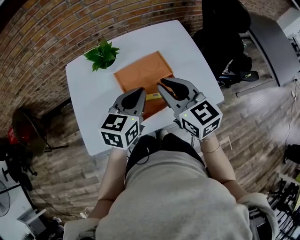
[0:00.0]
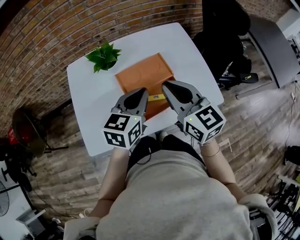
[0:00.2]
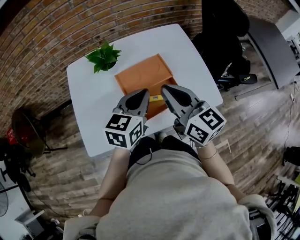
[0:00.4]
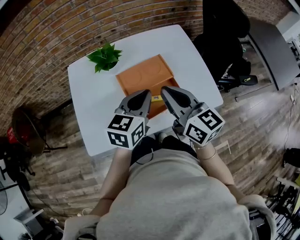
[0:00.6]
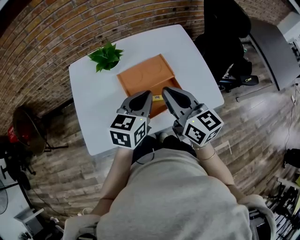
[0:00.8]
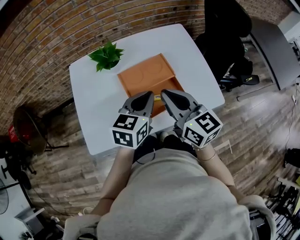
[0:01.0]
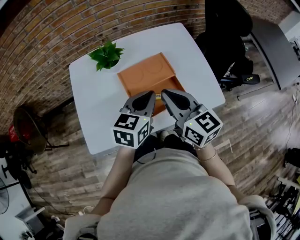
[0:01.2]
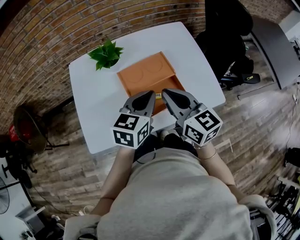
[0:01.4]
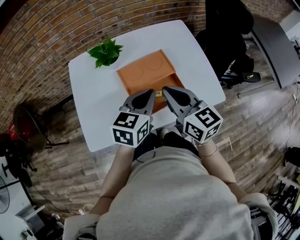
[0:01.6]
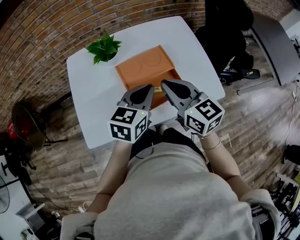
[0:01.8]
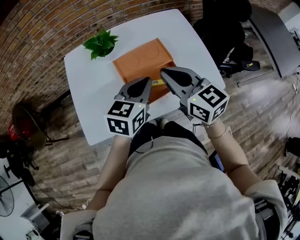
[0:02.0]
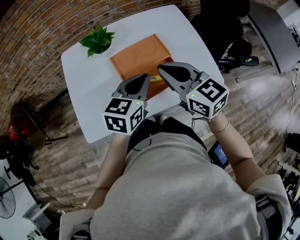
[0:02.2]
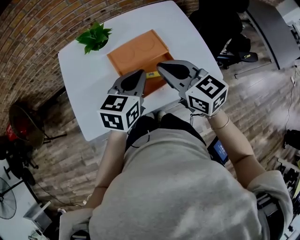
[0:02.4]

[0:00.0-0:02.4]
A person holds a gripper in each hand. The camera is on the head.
0:01.2 to 0:02.4: There are only small adjustments of the grippers.

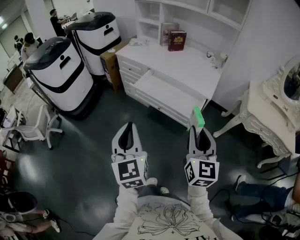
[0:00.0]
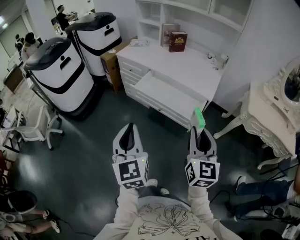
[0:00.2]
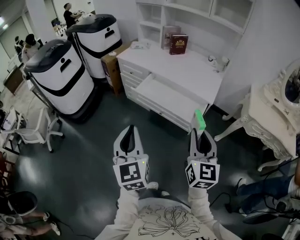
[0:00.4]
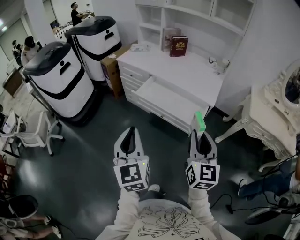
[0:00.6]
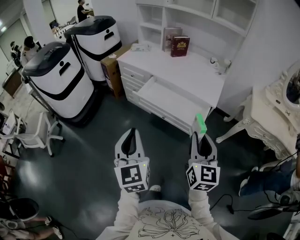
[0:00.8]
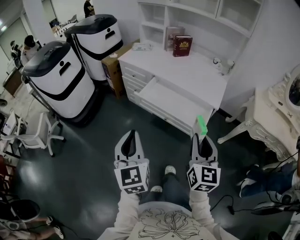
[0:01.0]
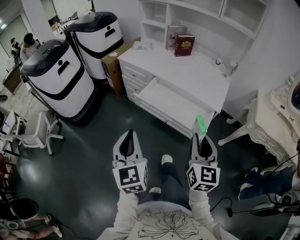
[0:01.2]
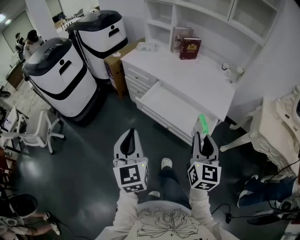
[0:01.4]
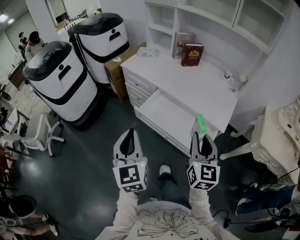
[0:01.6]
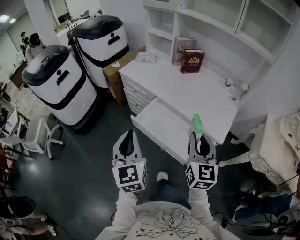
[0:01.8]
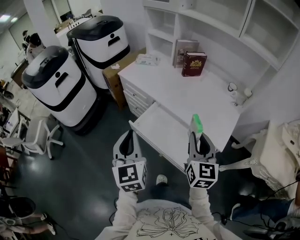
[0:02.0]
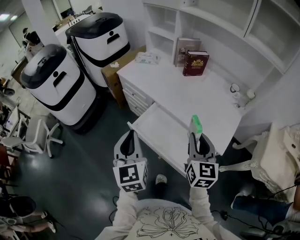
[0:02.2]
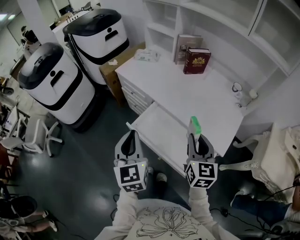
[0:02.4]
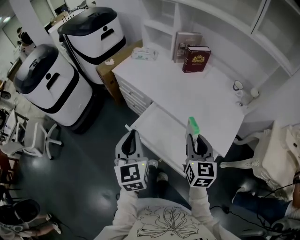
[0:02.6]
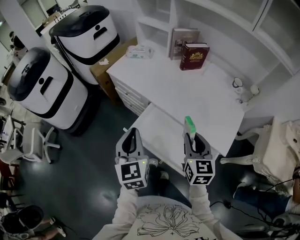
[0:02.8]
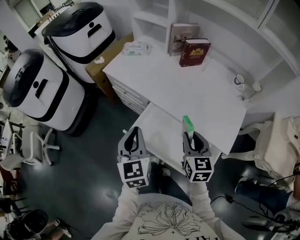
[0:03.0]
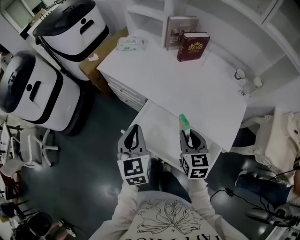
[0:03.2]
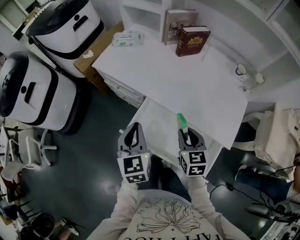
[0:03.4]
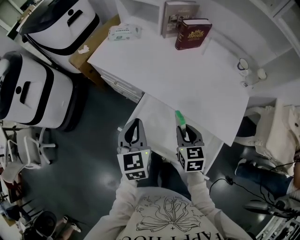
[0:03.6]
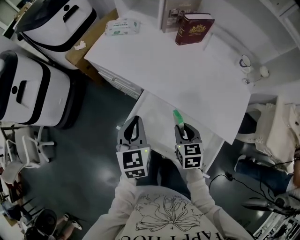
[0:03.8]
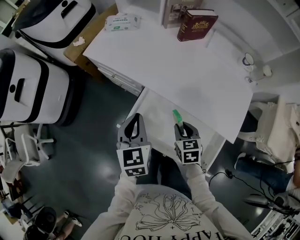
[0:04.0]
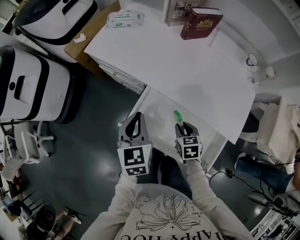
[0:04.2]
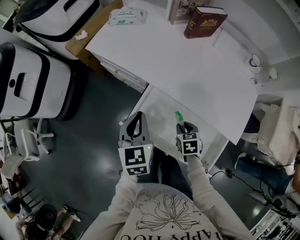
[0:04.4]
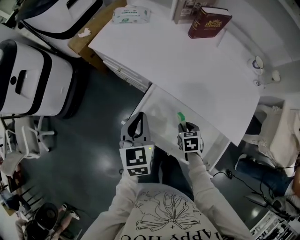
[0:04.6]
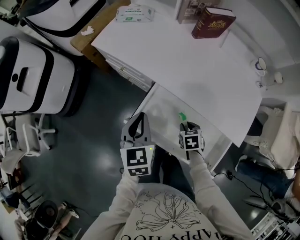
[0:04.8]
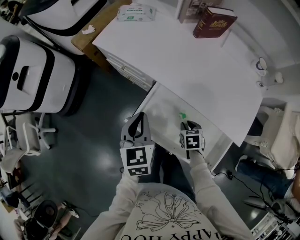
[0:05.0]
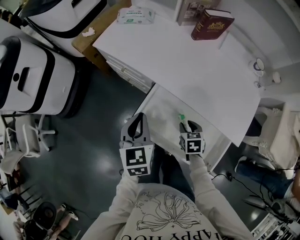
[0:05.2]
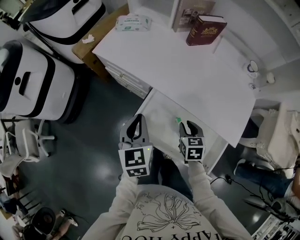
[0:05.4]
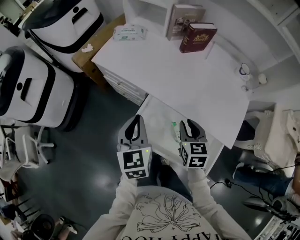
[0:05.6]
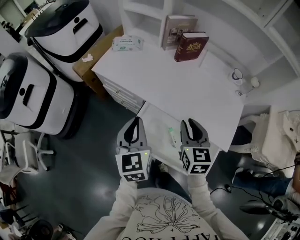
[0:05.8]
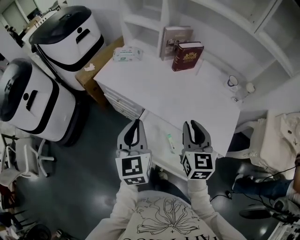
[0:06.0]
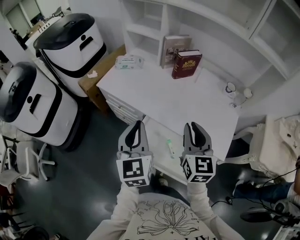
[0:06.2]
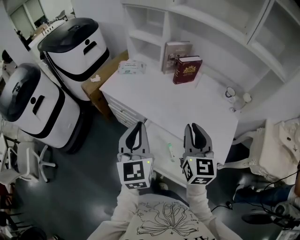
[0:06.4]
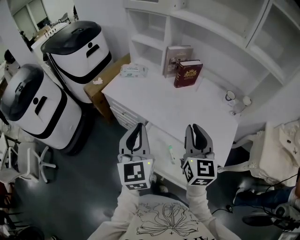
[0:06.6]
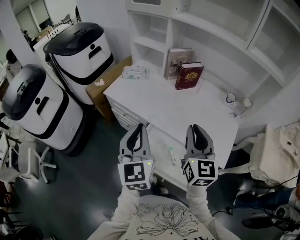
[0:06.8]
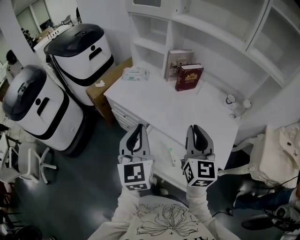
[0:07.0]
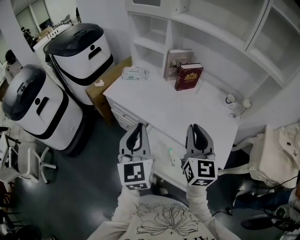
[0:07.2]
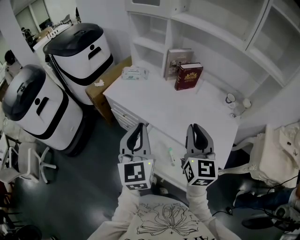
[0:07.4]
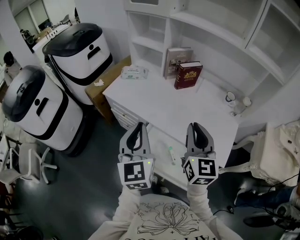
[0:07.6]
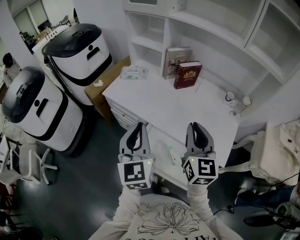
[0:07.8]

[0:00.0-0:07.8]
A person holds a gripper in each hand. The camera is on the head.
0:00.0 to 0:01.6: The grippers both shift forward by about 25 cm.
0:01.6 to 0:03.2: The right gripper shifts about 30 cm forward and downward, and turns by some 30 degrees; the left gripper travels forward by about 30 cm.
0:03.2 to 0:04.6: The right gripper shifts some 25 cm downward, and points its fingers roughly 30 degrees further downward. Meanwhile the left gripper is displaced downward and forward by approximately 10 cm.
0:04.6 to 0:06.2: The left gripper heads upward, covering about 20 cm, and swivels about 20 degrees. The right gripper goes about 35 cm upward, and points its fingers about 50 degrees further upward.
0:06.2 to 0:07.8: The right gripper heads upward, covering some 5 cm.

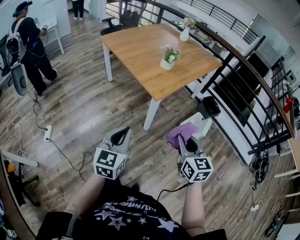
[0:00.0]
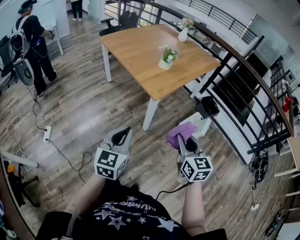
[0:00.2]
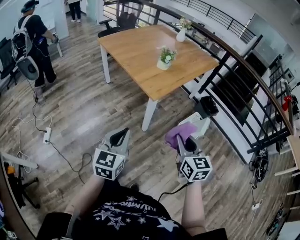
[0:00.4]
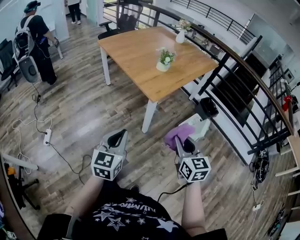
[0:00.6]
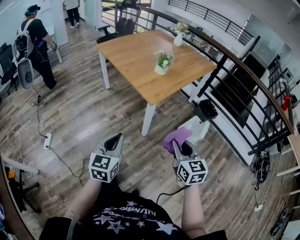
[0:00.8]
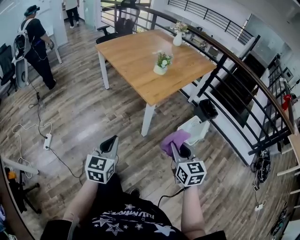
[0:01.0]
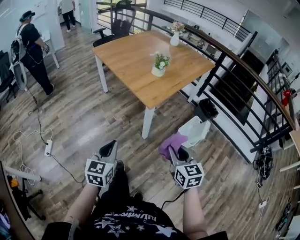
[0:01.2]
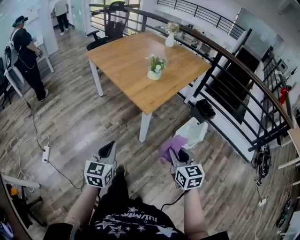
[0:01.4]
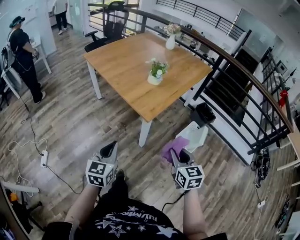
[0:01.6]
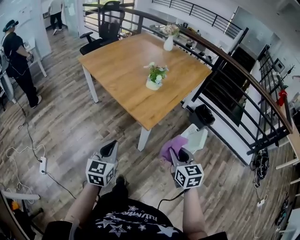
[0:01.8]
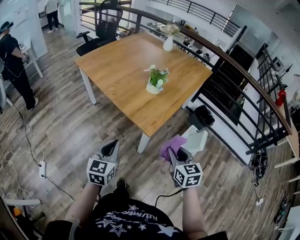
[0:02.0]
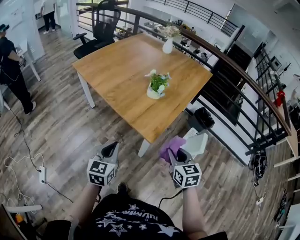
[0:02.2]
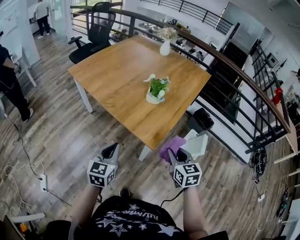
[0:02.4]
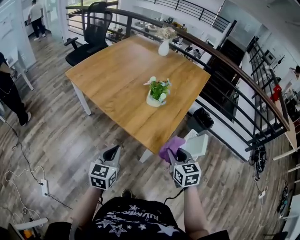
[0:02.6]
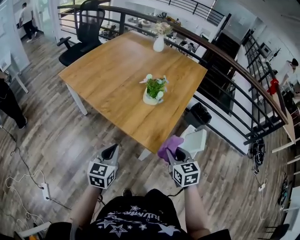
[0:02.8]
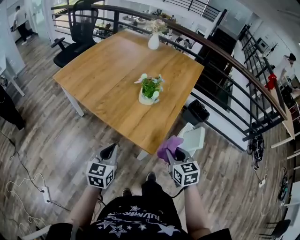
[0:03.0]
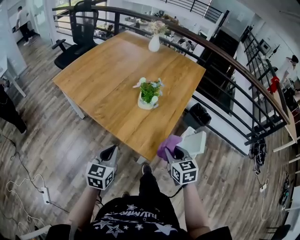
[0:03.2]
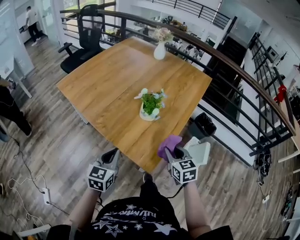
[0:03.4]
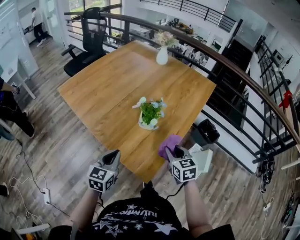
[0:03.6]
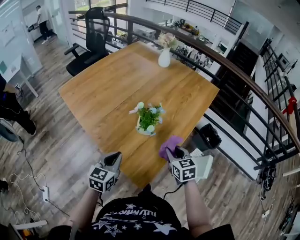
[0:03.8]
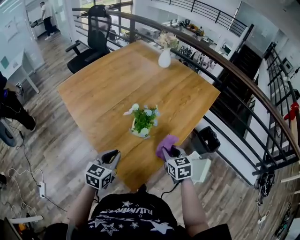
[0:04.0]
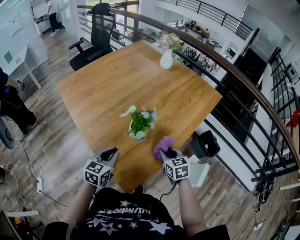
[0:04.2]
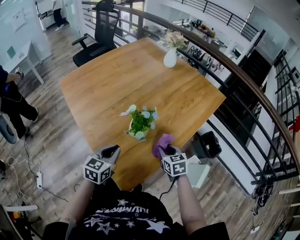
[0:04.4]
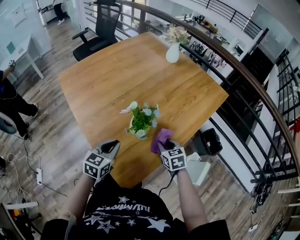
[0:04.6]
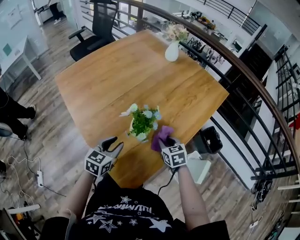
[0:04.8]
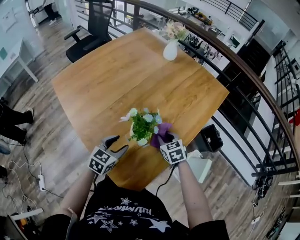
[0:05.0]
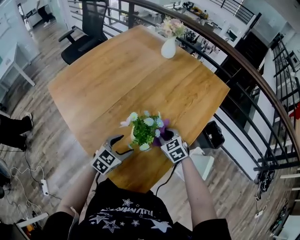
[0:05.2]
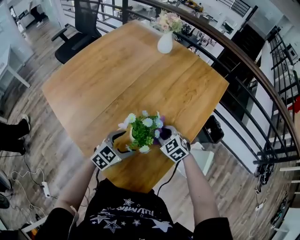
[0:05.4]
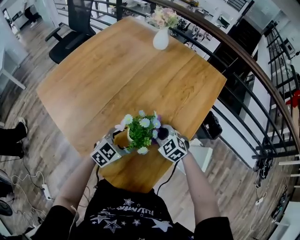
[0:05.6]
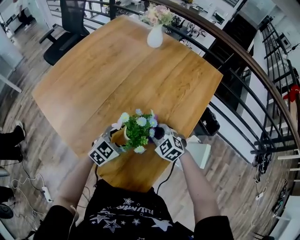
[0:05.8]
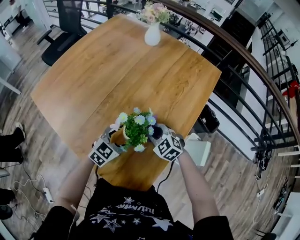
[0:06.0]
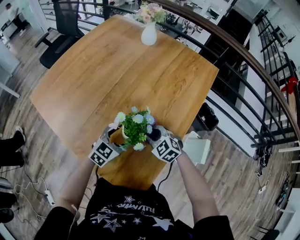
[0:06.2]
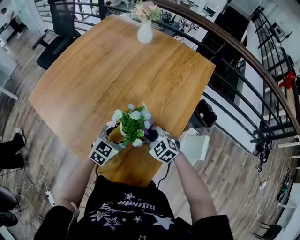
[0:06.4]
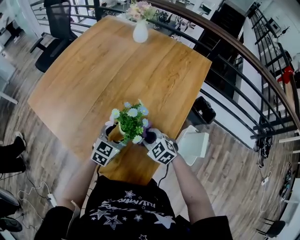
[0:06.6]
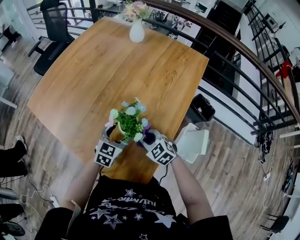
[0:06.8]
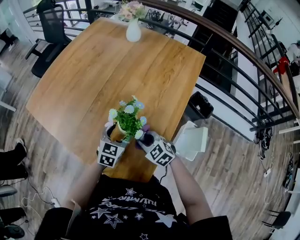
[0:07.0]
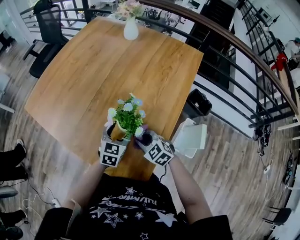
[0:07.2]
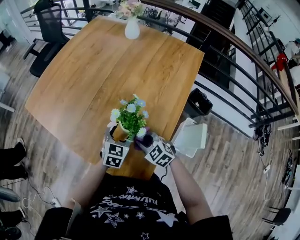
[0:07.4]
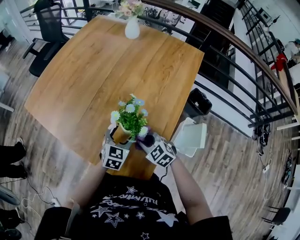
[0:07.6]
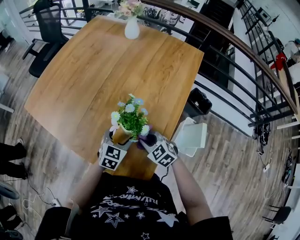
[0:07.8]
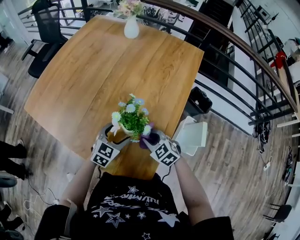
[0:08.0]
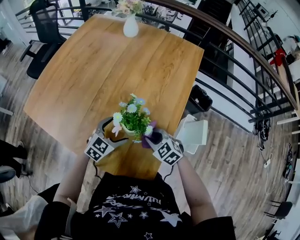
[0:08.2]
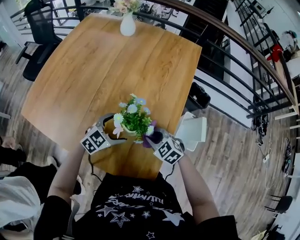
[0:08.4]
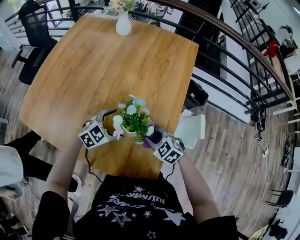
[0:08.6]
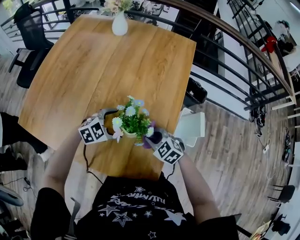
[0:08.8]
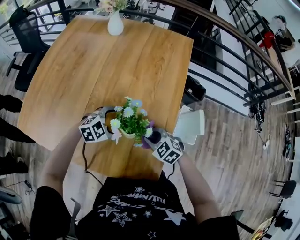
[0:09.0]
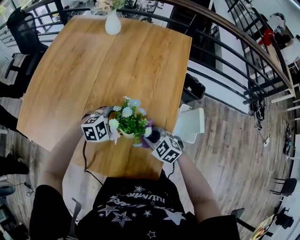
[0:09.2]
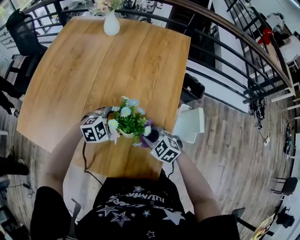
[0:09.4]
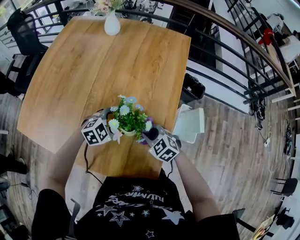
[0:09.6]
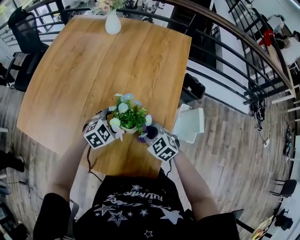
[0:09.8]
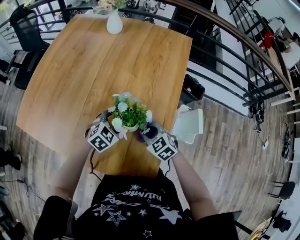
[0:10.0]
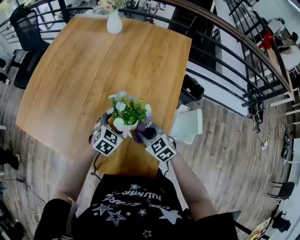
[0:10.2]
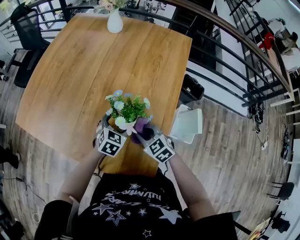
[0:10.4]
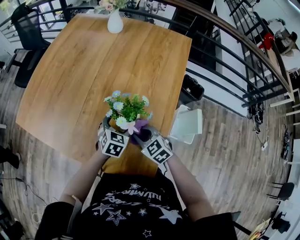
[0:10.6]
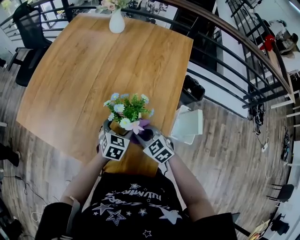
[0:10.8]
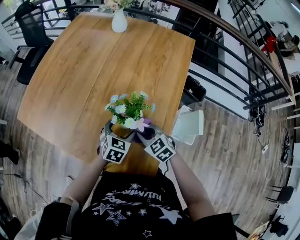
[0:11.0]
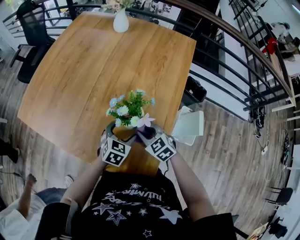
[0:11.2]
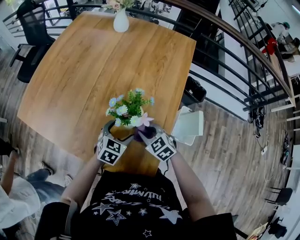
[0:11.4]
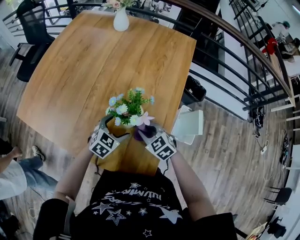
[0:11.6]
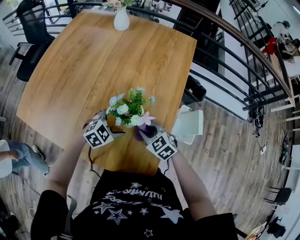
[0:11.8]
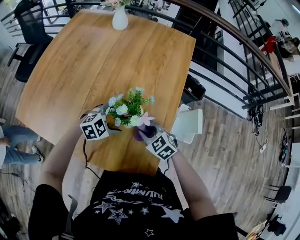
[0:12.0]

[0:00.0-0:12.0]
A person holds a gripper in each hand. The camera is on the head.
0:00.0 to 0:01.6: The left gripper goes roughly 10 cm forward, while the right gripper heads forward and downward, covering some 10 cm.
0:01.6 to 0:03.0: The right gripper moves forward and to the left, some 25 cm, while the left gripper goes roughly 25 cm forward.
0:03.0 to 0:04.4: The right gripper heads forward, covering approximately 30 cm. The left gripper moves forward and to the right, some 25 cm.
0:04.4 to 0:06.0: The left gripper travels forward and downward by approximately 15 cm, rotates approximately 40 degrees, and opens; the right gripper shifts some 10 cm forward and to the left, and swivels about 30 degrees.
0:06.0 to 0:07.6: The right gripper heads backward, covering roughly 10 cm.
0:07.6 to 0:09.0: The left gripper ends up some 5 cm from where it was, and changes its angle by approximately 60 degrees.
0:09.0 to 0:10.4: The left gripper swivels about 50 degrees.
0:10.4 to 0:12.0: The left gripper rotates some 40 degrees.

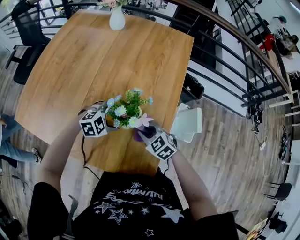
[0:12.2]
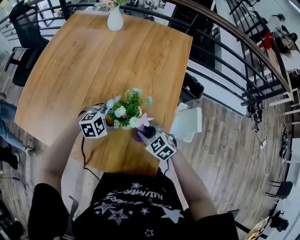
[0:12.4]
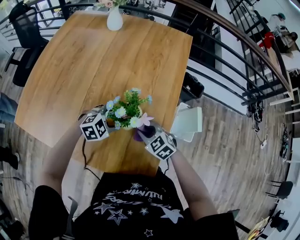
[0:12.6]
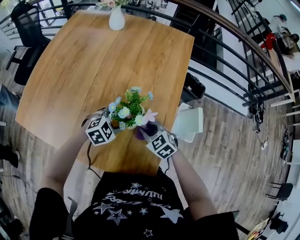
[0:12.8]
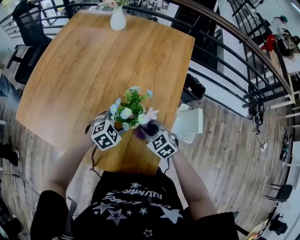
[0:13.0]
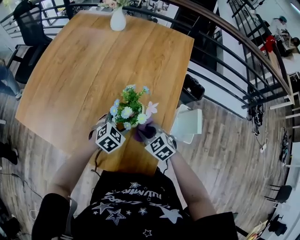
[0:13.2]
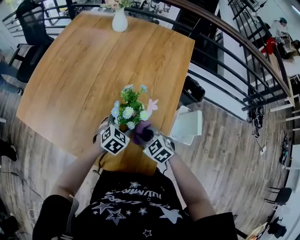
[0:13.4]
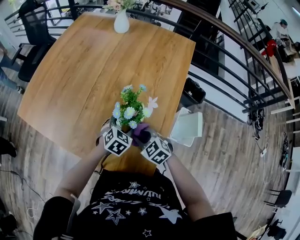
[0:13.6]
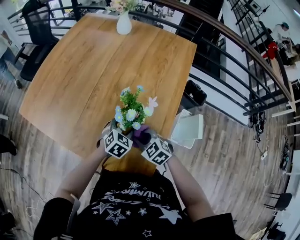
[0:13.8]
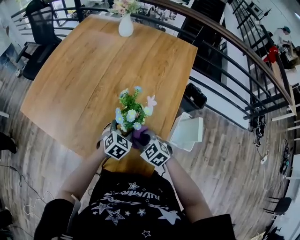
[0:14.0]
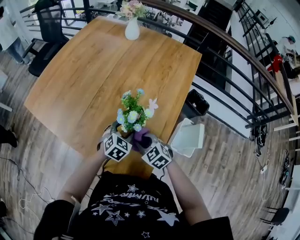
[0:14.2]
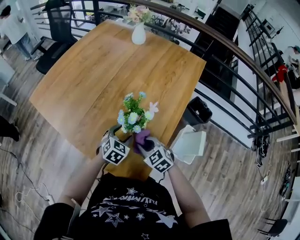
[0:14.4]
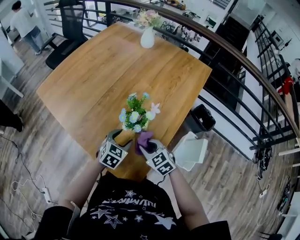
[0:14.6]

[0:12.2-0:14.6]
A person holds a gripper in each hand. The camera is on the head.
0:12.2 to 0:13.4: The left gripper rotates roughly 40 degrees.
0:13.4 to 0:14.6: The left gripper heads backward, covering roughly 5 cm, and swivels approximately 20 degrees.
